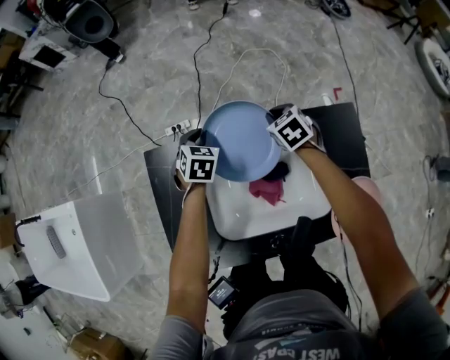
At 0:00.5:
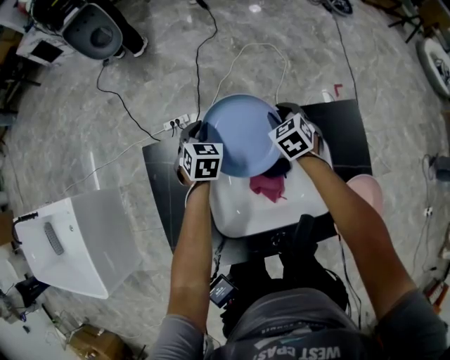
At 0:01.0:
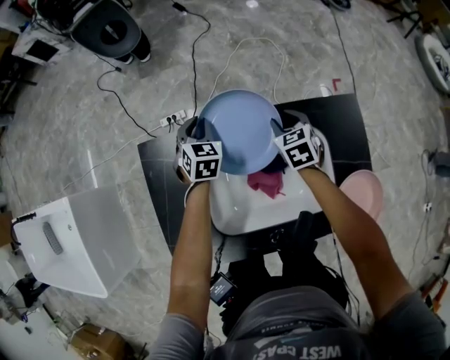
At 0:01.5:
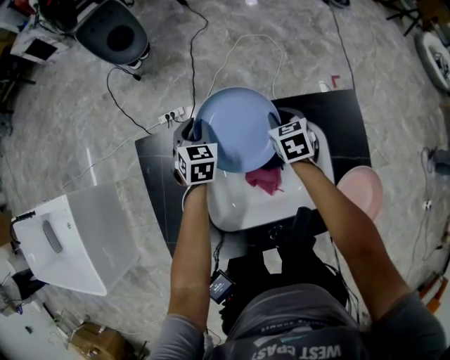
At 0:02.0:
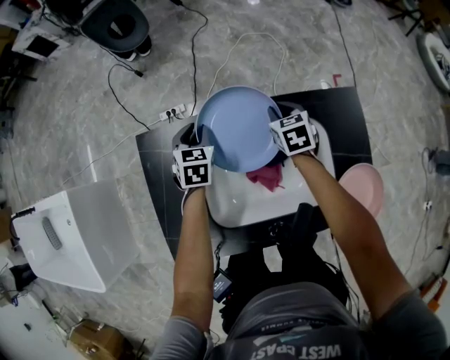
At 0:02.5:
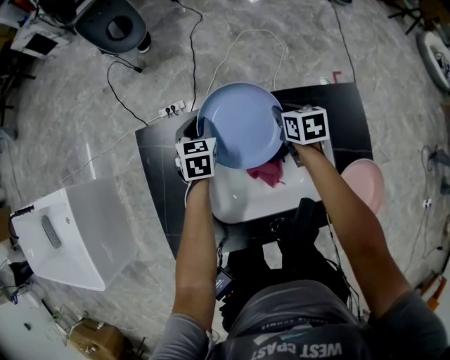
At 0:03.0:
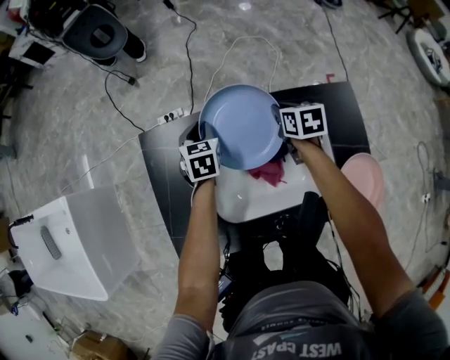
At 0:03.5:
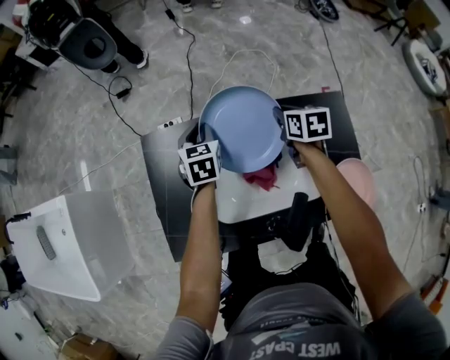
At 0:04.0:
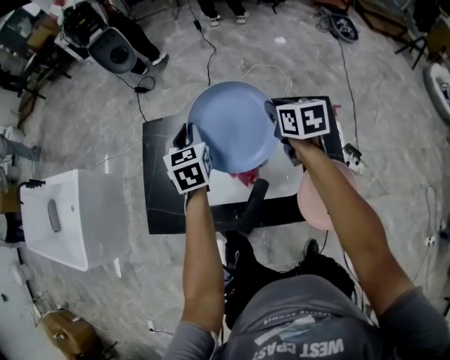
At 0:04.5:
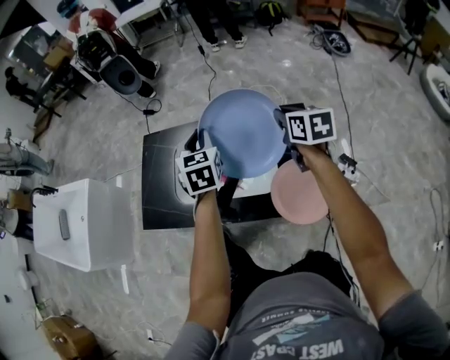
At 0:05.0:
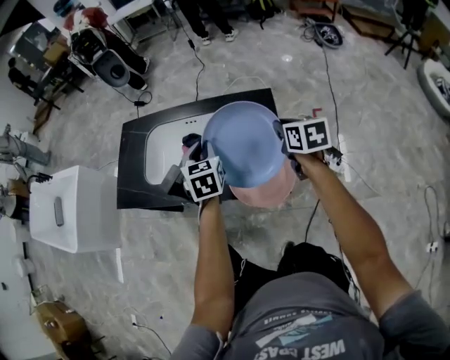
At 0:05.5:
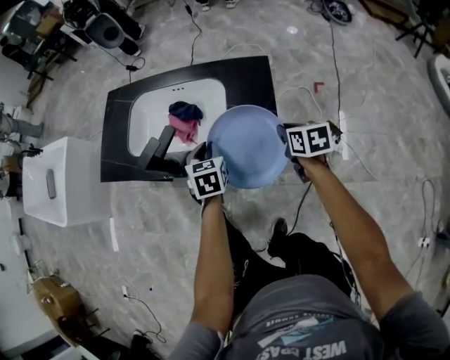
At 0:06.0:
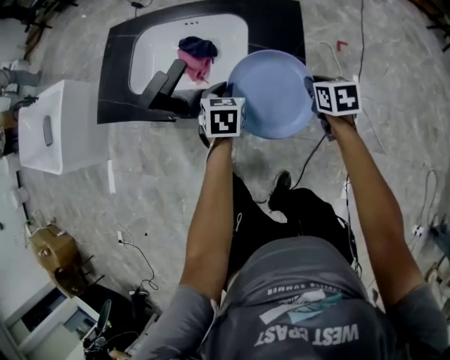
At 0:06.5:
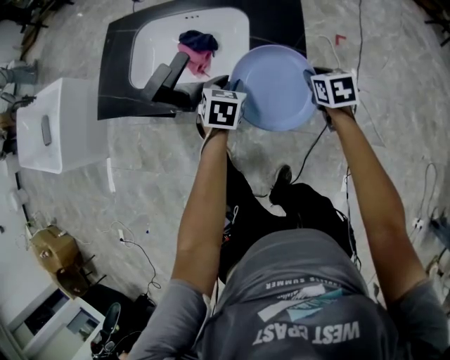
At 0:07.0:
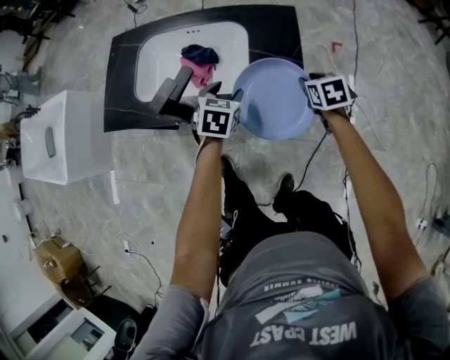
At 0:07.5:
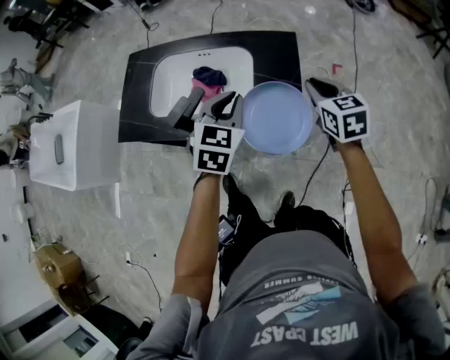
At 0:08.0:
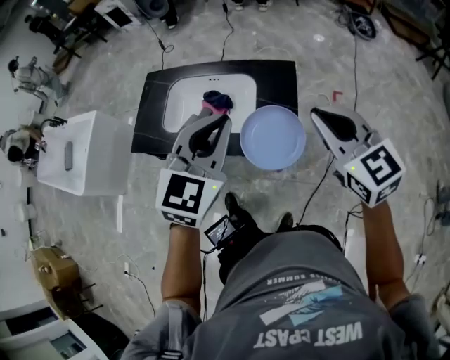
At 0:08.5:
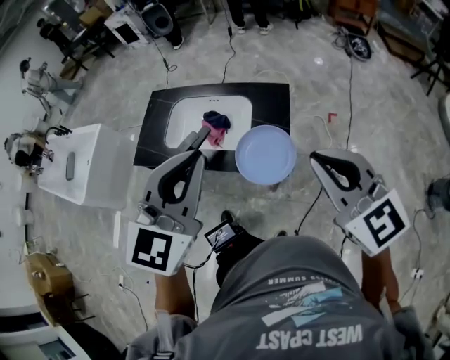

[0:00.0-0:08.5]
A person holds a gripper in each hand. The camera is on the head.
0:00.0 to 0:02.0: The grippers make only small movements.
0:02.0 to 0:04.0: Both grippers travel together upward and backward, about 20 cm. The right gripper changes its angle by roughly 20 degrees. The left gripper rotates roughly 20 degrees.
0:04.0 to 0:06.5: The two grippers go roughly 40 cm backward, to the right and downward. The left gripper turns by about 20 degrees.
0:06.5 to 0:08.5: The left gripper moves upward, roughly 50 cm, angles its fingers upward, by approximately 40 degrees, and closes up, while the right gripper heads upward and backward, covering some 50 cm, and angles its fingers upward, by some 40 degrees.

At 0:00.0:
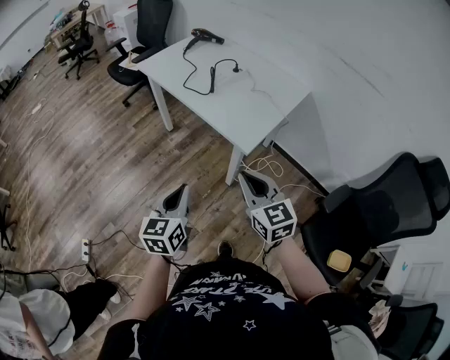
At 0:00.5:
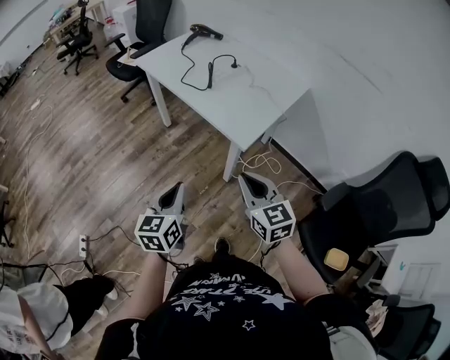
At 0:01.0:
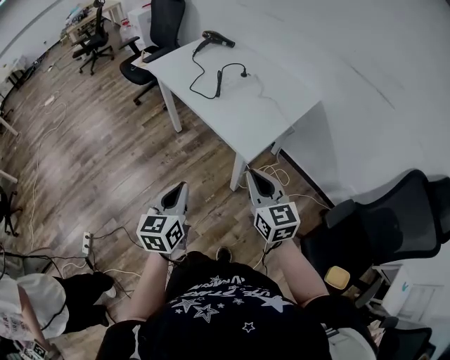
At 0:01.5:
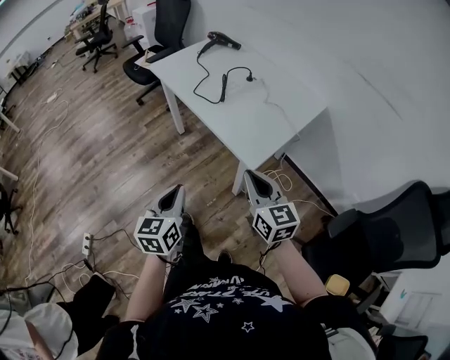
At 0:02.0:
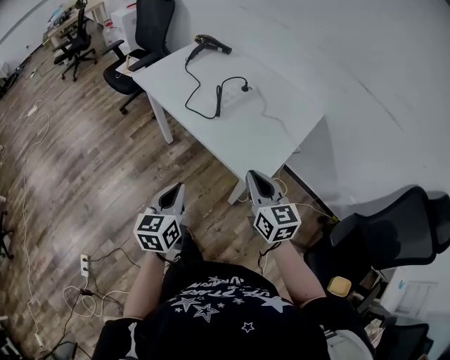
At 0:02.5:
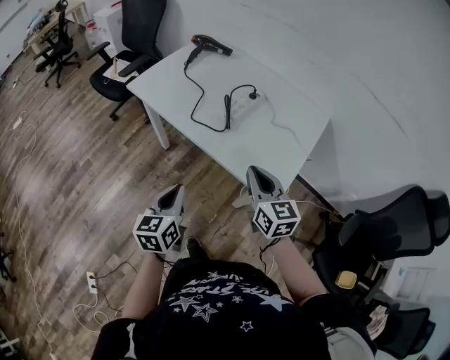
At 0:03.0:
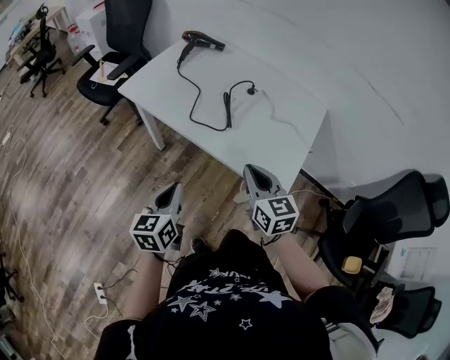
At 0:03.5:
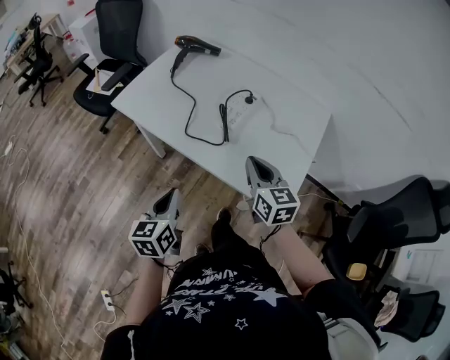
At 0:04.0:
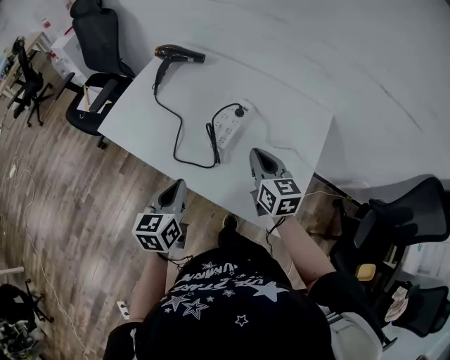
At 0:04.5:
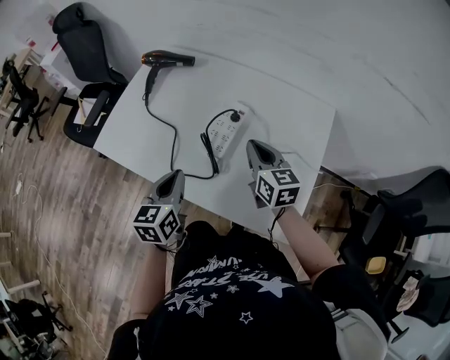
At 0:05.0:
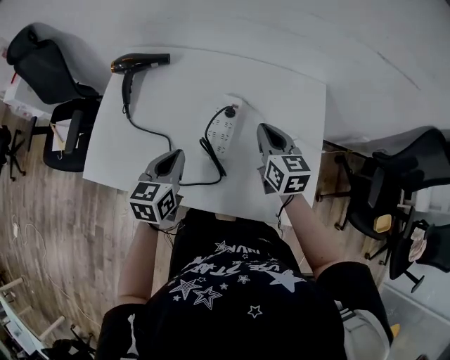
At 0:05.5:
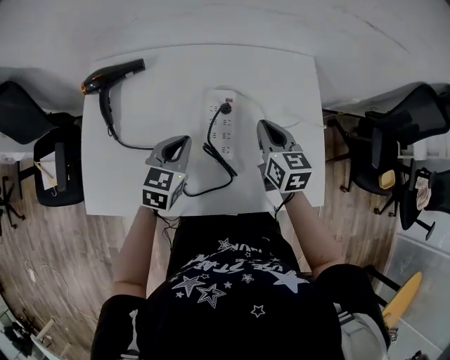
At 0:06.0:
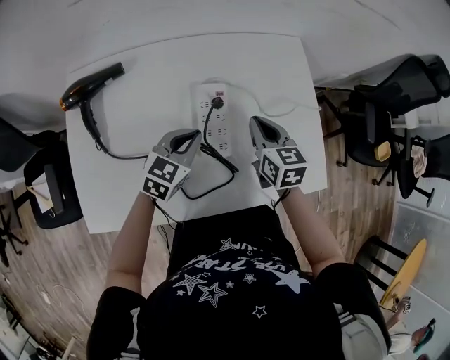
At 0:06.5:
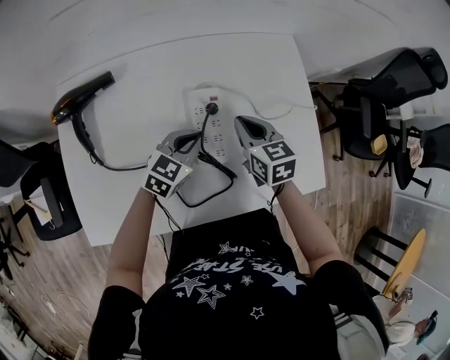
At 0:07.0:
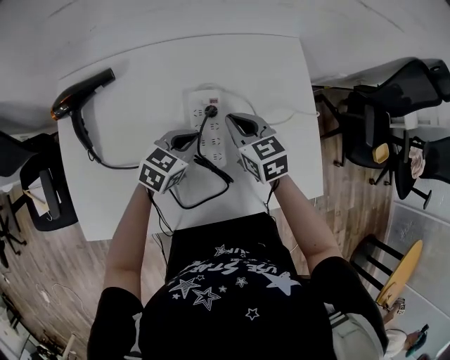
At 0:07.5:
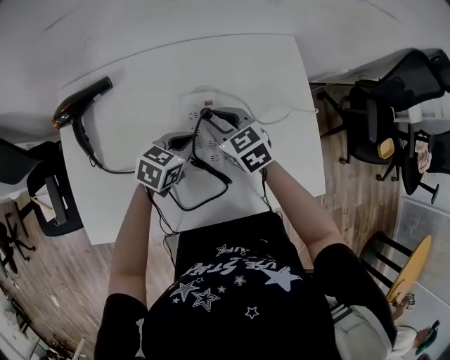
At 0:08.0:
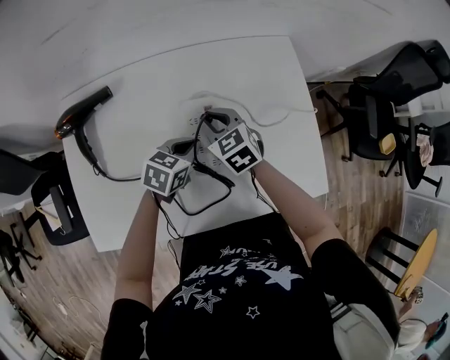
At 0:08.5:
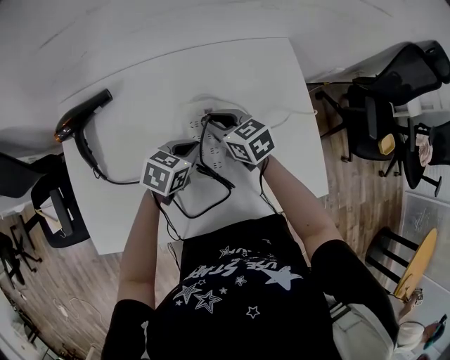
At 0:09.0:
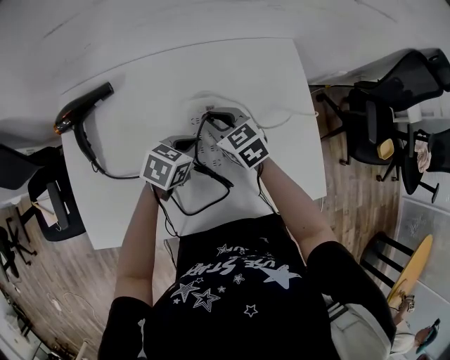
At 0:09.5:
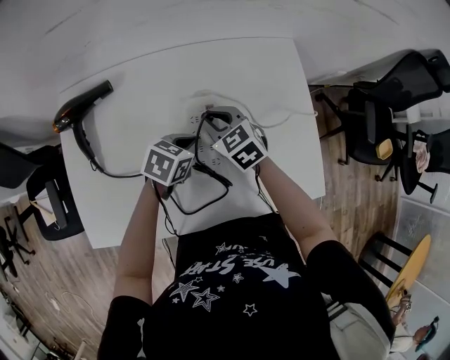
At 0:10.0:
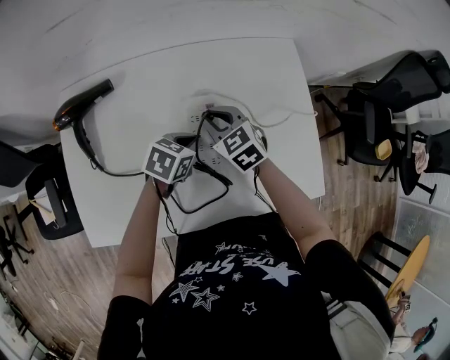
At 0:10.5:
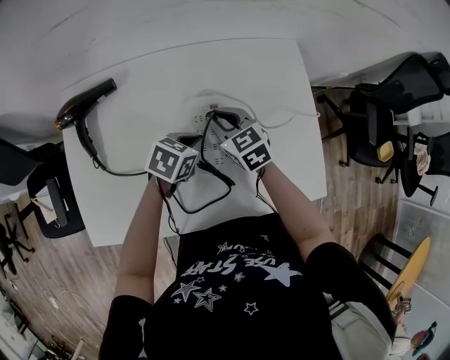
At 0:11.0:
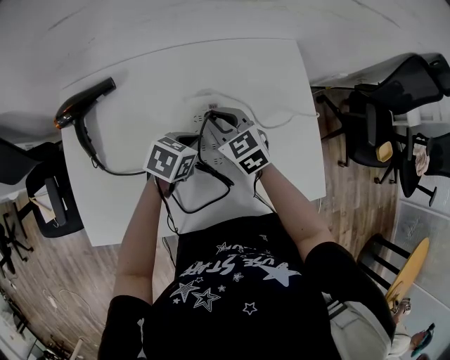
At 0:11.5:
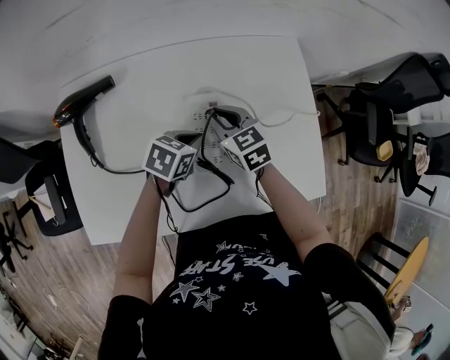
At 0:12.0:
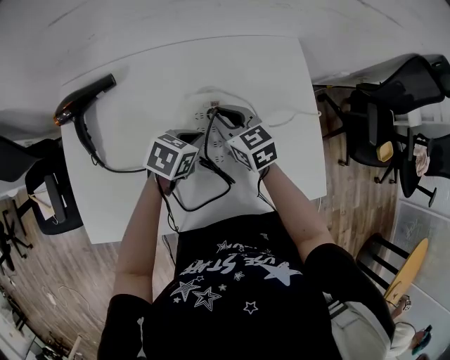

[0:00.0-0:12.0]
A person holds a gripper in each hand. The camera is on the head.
0:00.0 to 0:02.0: The two grippers go approximately 20 cm forward.
0:02.0 to 0:04.0: The two grippers go roughly 30 cm forward.
0:04.0 to 0:06.0: The right gripper moves approximately 15 cm, and swivels about 40 degrees; the left gripper ends up about 25 cm from where it was, and changes its angle by some 70 degrees.
0:06.0 to 0:08.0: The right gripper shifts roughly 10 cm to the left, and rotates some 30 degrees. The left gripper shifts by about 5 cm.
0:08.0 to 0:12.0: The grippers stay close to where they were, moving slightly.

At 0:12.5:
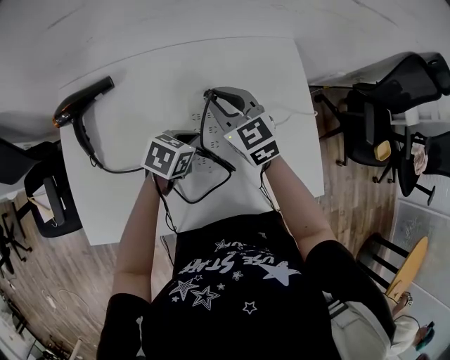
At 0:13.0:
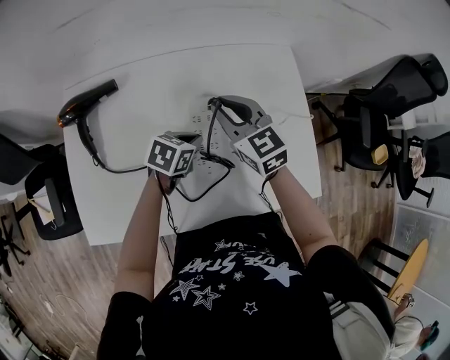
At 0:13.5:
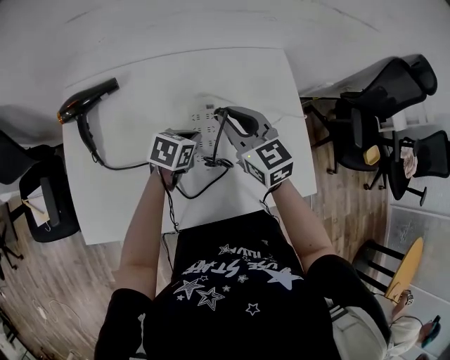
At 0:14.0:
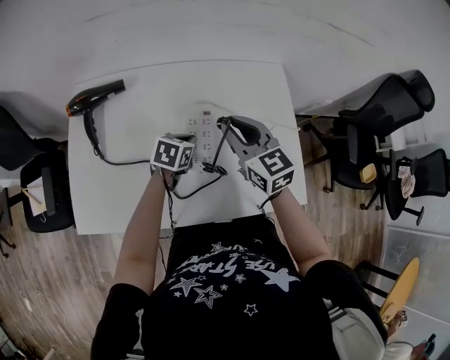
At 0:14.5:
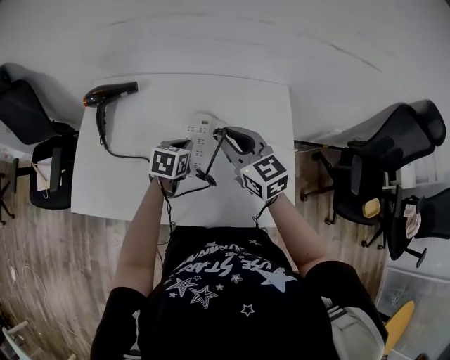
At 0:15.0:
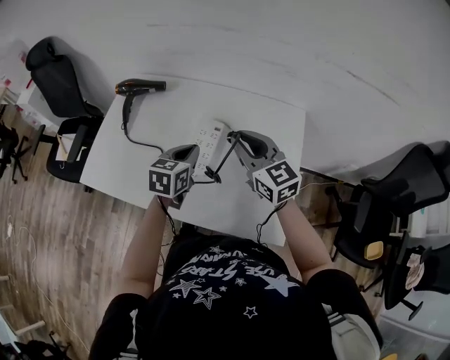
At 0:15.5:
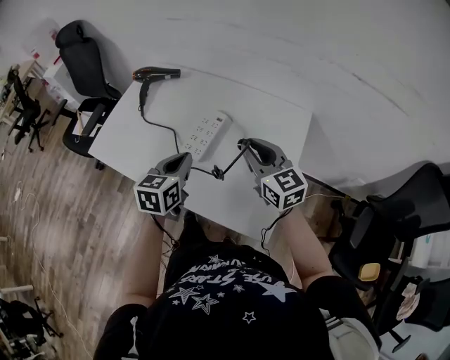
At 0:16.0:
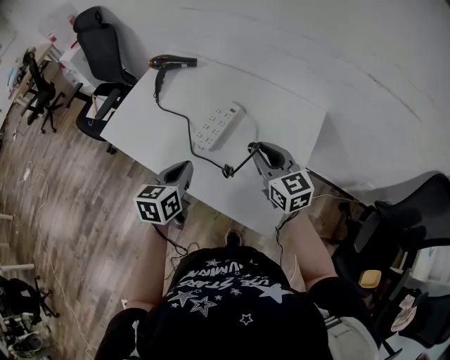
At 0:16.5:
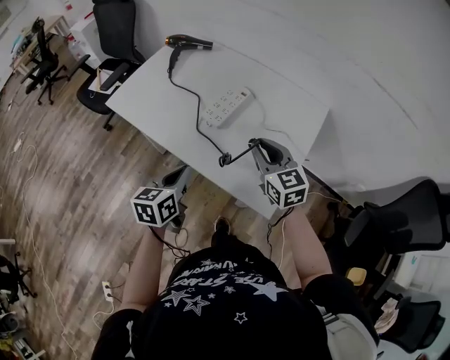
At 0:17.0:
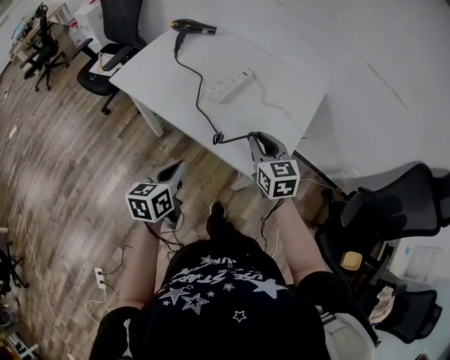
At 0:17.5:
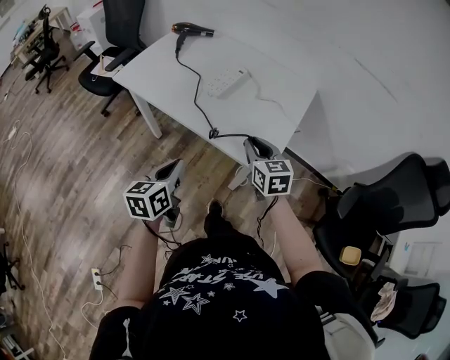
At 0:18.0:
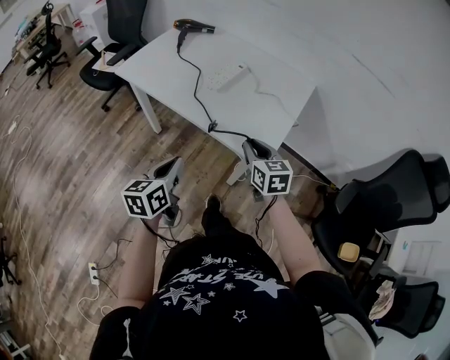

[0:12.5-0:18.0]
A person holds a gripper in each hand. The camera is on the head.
0:12.5 to 0:14.5: The left gripper swivels about 30 degrees, while the right gripper moves some 15 cm.
0:14.5 to 0:16.0: The left gripper moves some 25 cm, and swivels approximately 40 degrees. The right gripper ends up about 15 cm from where it was.
0:16.0 to 0:18.0: The two grippers go some 25 cm backward.

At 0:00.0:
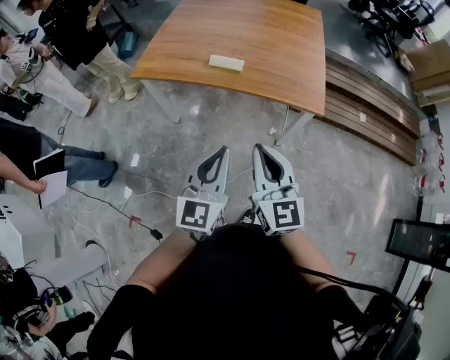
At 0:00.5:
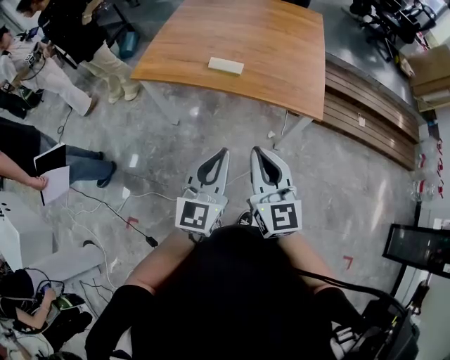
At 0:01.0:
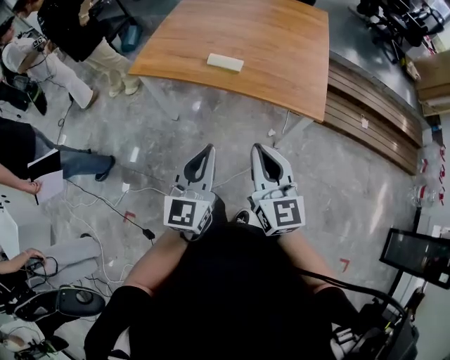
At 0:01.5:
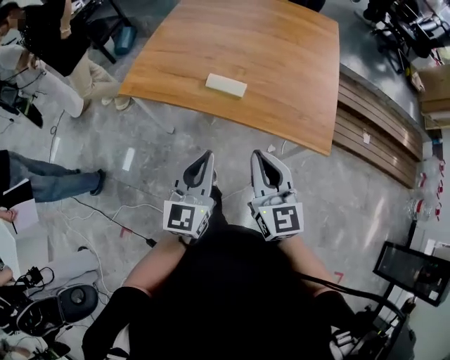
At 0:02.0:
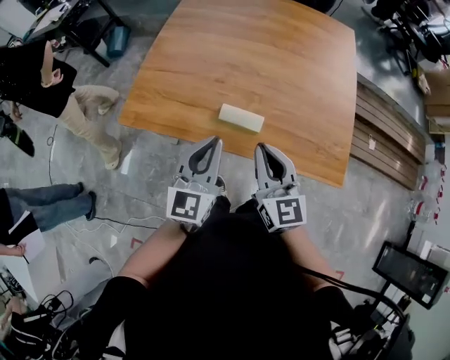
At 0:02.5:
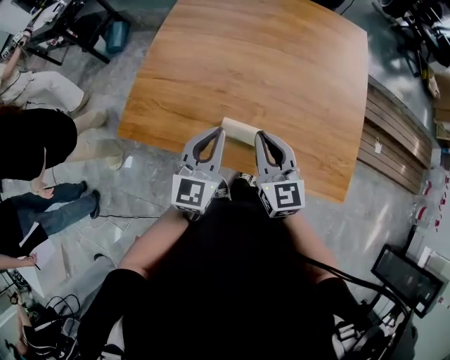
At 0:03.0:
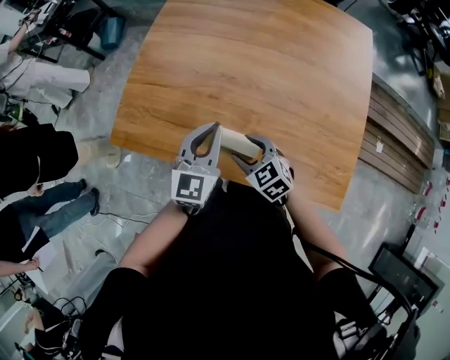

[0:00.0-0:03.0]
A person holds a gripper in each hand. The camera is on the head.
0:00.0 to 0:01.5: The grippers both shift forward by approximately 20 cm.
0:01.5 to 0:03.0: The right gripper travels forward and downward by approximately 40 cm, tilts its fingers about 40 degrees downward, and opens. The left gripper moves forward, approximately 40 cm.
